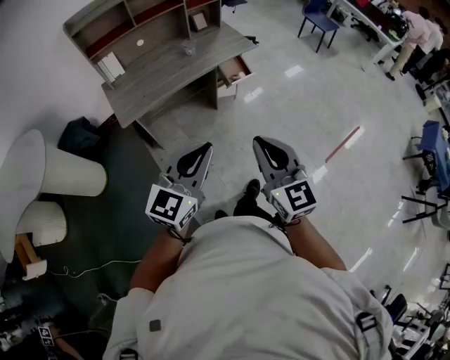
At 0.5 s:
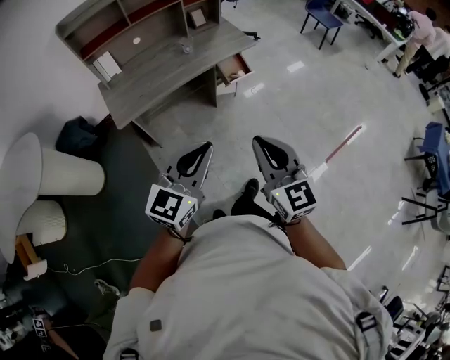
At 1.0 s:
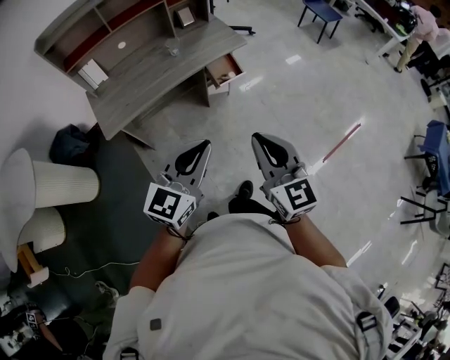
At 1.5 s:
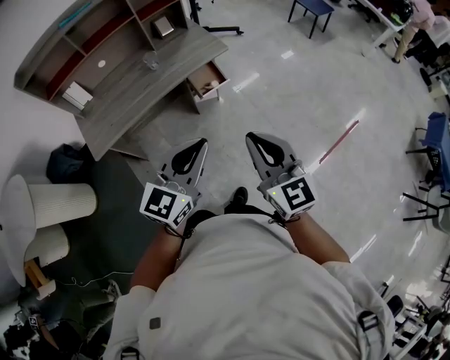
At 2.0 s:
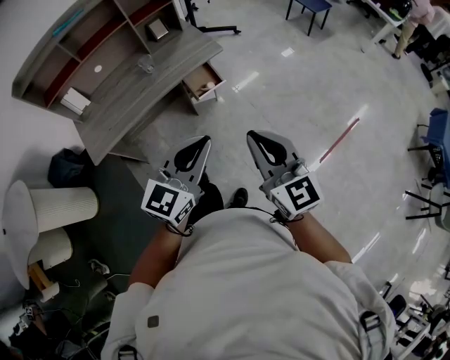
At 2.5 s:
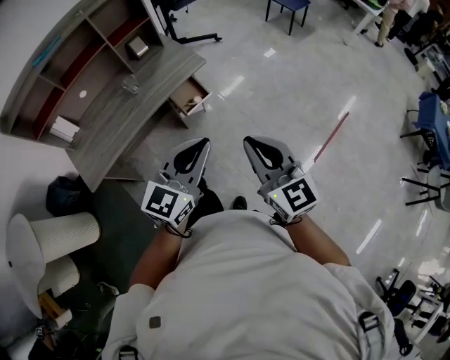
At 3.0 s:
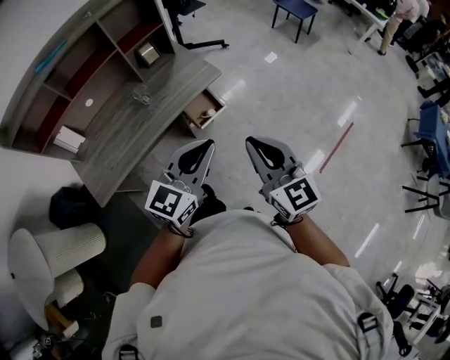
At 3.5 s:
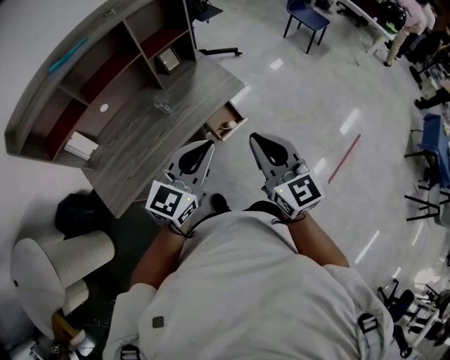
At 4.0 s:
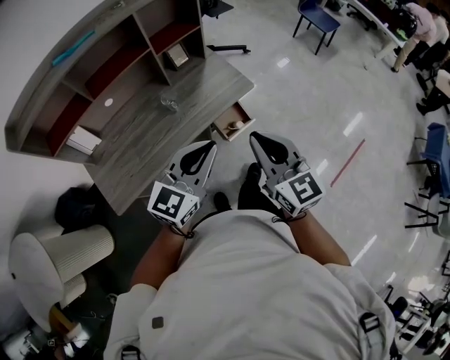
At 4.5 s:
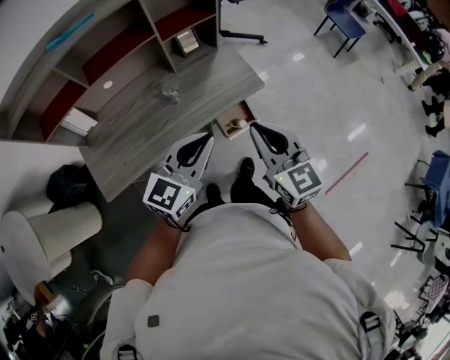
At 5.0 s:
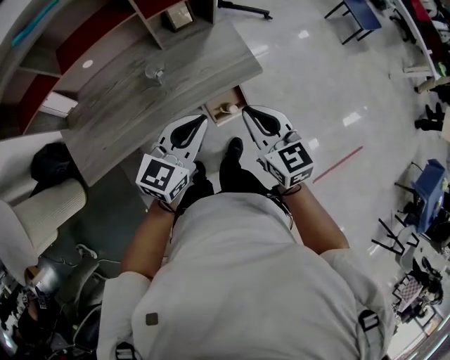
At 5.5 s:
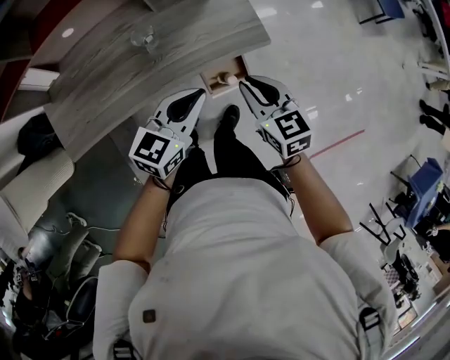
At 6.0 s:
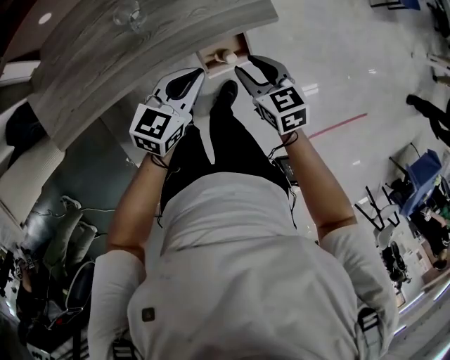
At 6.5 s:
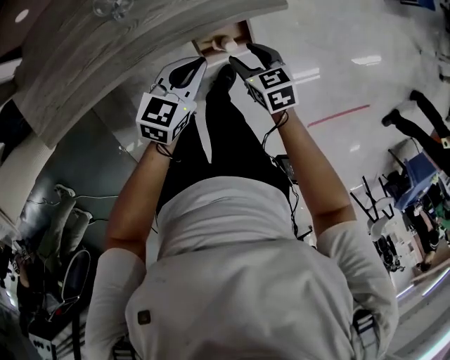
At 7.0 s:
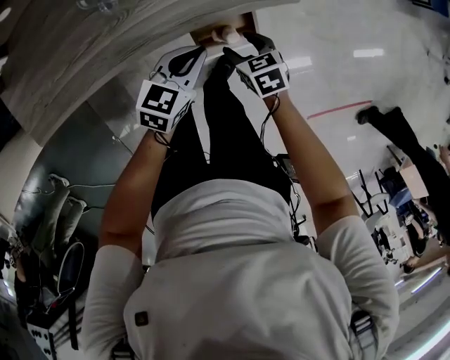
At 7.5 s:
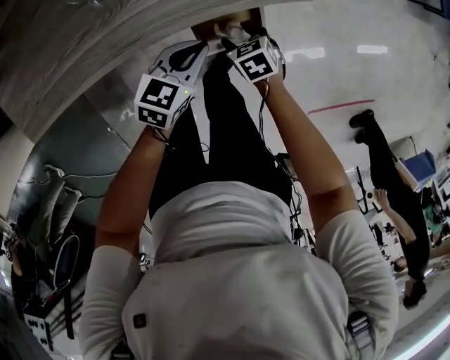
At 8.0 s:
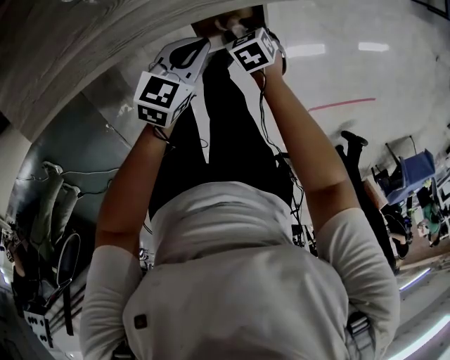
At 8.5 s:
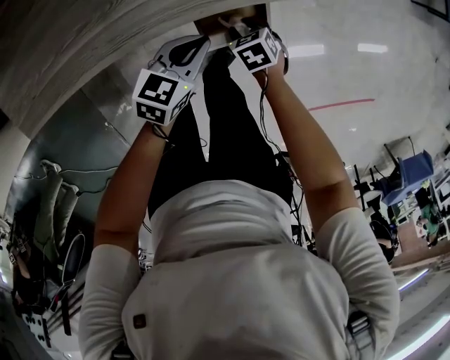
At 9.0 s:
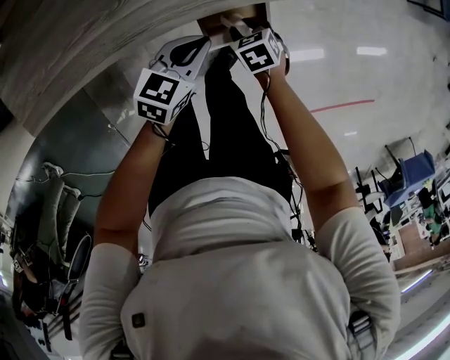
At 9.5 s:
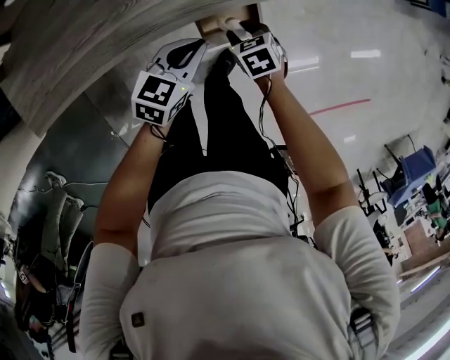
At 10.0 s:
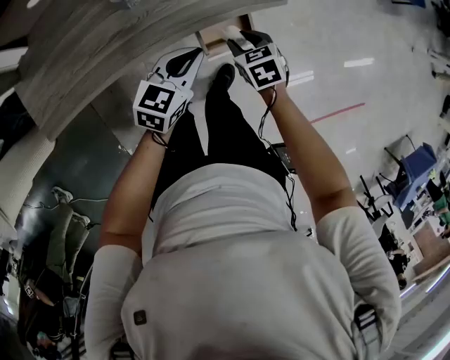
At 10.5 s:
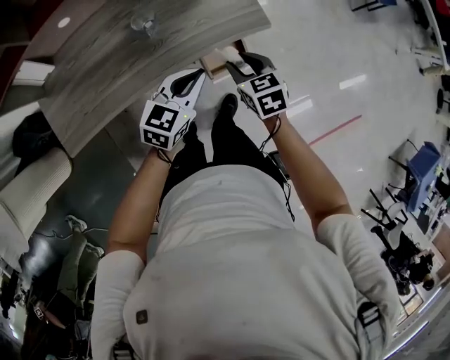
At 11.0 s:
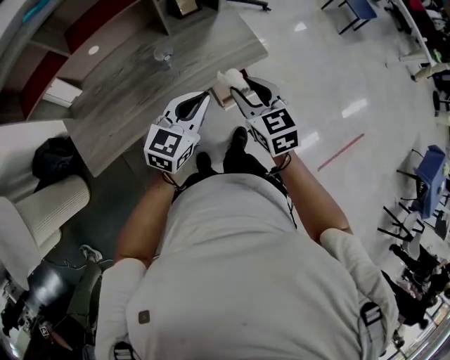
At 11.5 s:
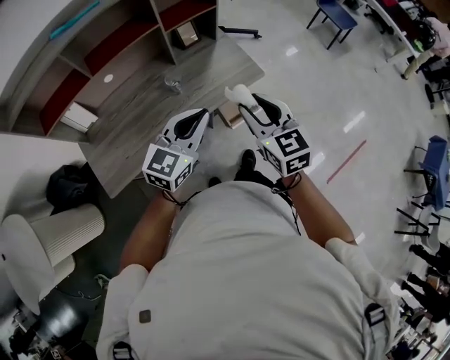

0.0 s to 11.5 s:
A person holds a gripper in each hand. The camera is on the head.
0.0 to 2.0 s: Both grippers travel together forward and to the right, some 30 cm.
2.0 to 4.0 s: Both grippers travel together forward and to the left, some 30 cm.
4.0 to 6.0 s: The two grippers go about 40 cm downward and forward. The left gripper swivels some 30 degrees, while the right gripper points its fingers roughly 40 degrees further downward, and opens.
6.0 to 7.5 s: Both grippers move downward, about 25 cm. The right gripper rotates roughly 30 degrees, and opens up.
7.5 to 9.5 s: The right gripper shifts roughly 10 cm upward, and closes. Meanwhile the left gripper shifts roughly 10 cm upward and to the left.
9.5 to 11.5 s: Both grippers move upward, about 40 cm. The left gripper changes its angle by approximately 30 degrees. Meanwhile the right gripper tips its fingers upward by some 40 degrees.

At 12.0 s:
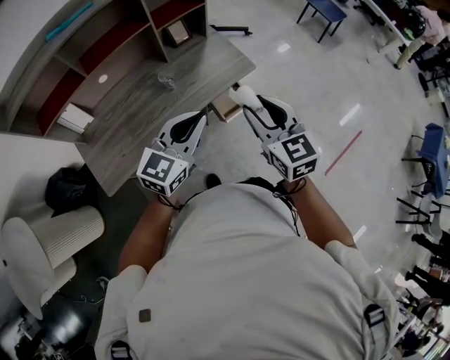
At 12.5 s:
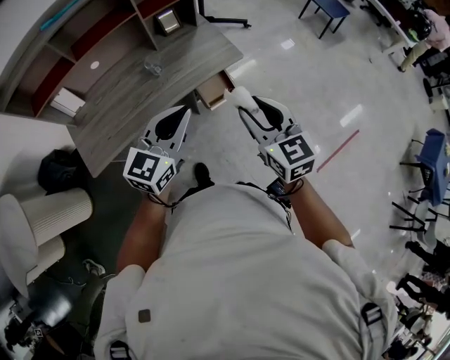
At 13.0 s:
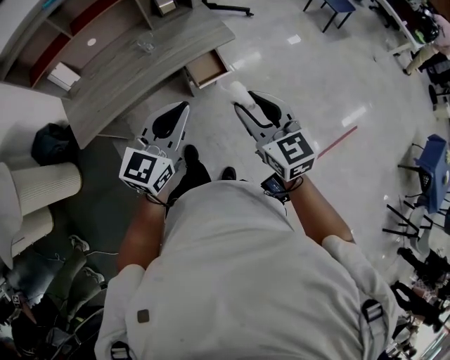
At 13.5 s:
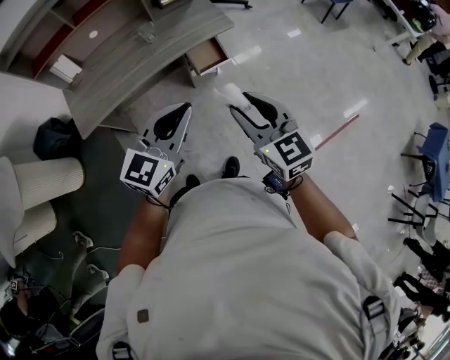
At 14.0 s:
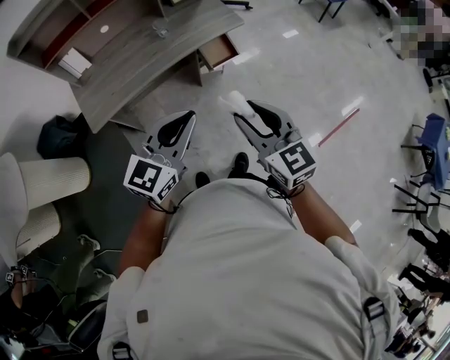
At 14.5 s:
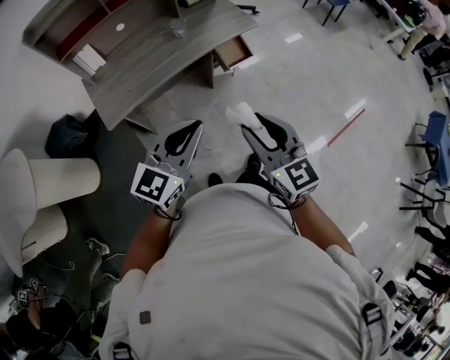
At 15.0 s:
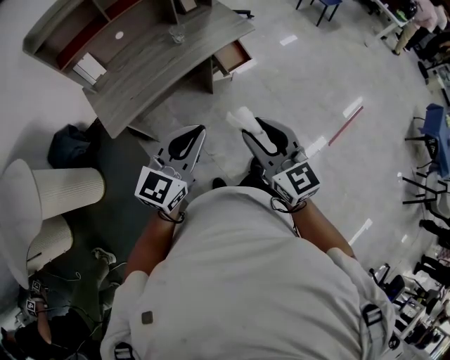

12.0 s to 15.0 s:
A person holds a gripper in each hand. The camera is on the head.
12.0 to 13.5 s: Both grippers move backward and to the right, approximately 25 cm.
13.5 to 15.0 s: The grippers both shift to the left and backward by some 20 cm.

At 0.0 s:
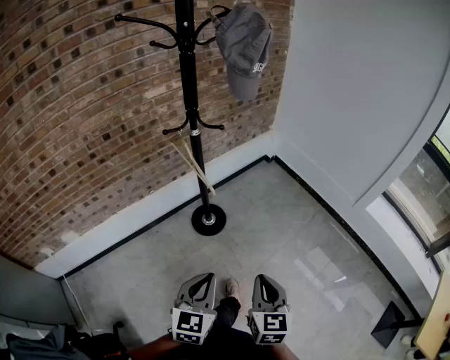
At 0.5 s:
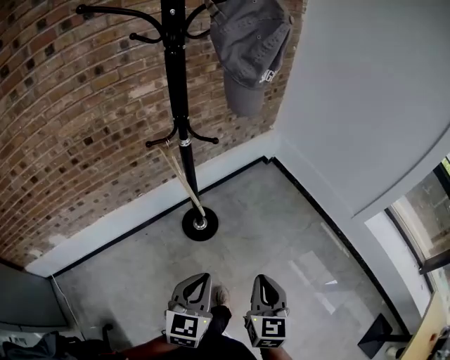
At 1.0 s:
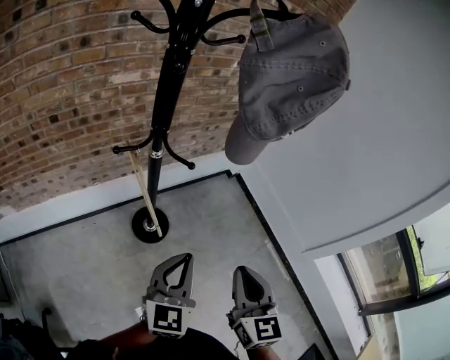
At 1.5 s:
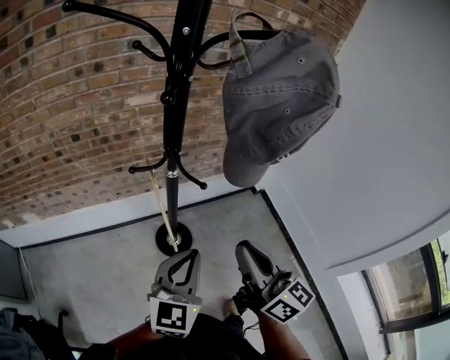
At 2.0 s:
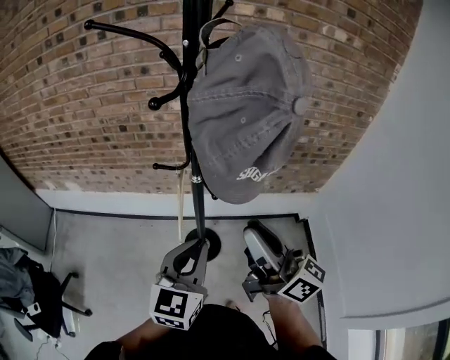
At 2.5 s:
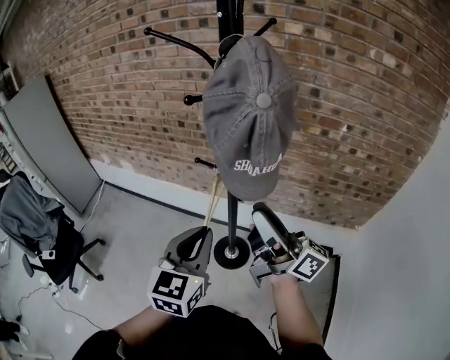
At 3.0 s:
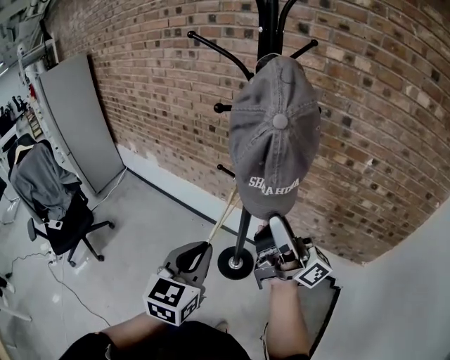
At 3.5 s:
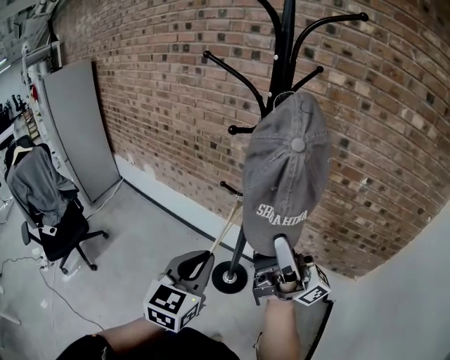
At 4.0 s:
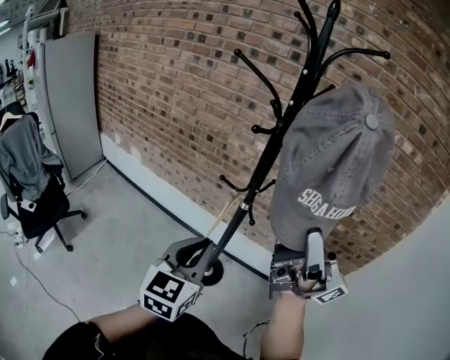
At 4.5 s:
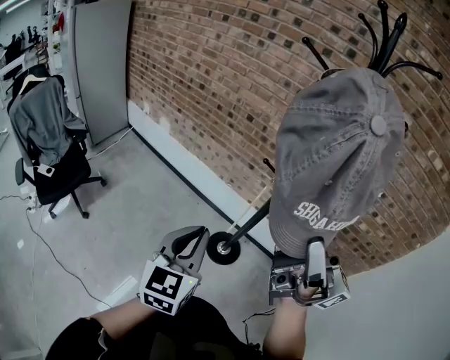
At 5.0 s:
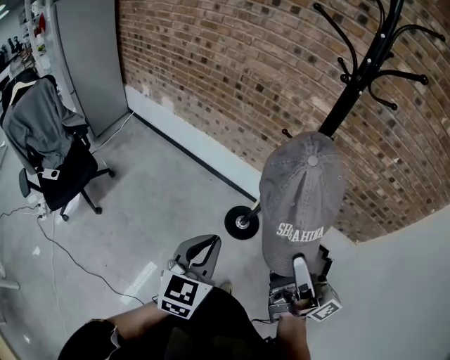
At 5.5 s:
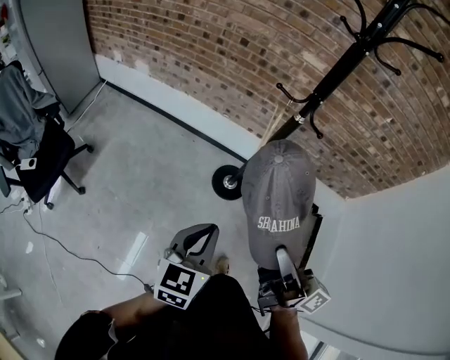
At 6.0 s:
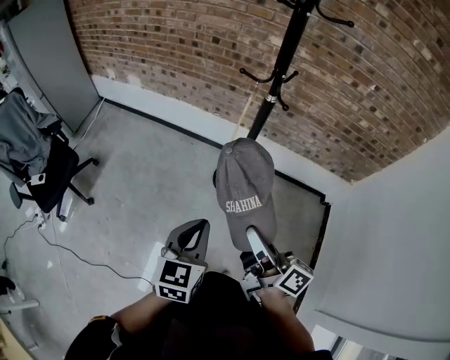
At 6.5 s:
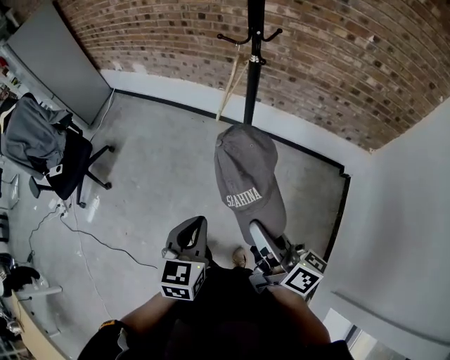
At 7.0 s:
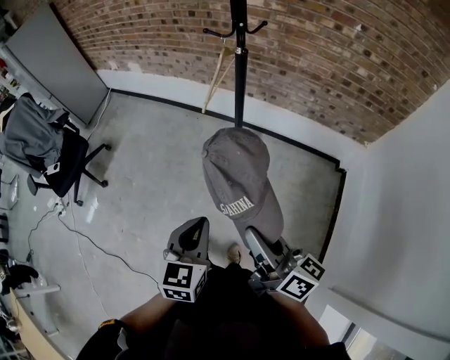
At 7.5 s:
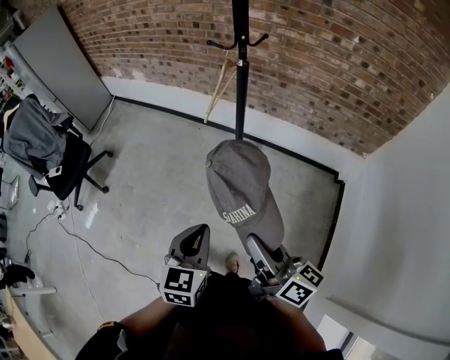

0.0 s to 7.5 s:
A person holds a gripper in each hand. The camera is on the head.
0.0 to 2.0 s: Both grippers are carried about 40 cm. The right gripper angles its fingers upward, by approximately 50 degrees. Meanwhile the left gripper rotates approximately 40 degrees.
2.0 to 4.0 s: The right gripper moves upward, some 20 cm, and swivels some 50 degrees. The left gripper travels upward by about 5 cm, and rotates roughly 20 degrees.
4.0 to 5.5 s: The right gripper is displaced downward by roughly 30 cm, and points its fingers approximately 30 degrees further downward, while the left gripper moves some 25 cm.
5.5 to 7.5 s: The right gripper shifts some 30 cm backward, to the right and downward, while the left gripper shifts about 30 cm backward and to the right.

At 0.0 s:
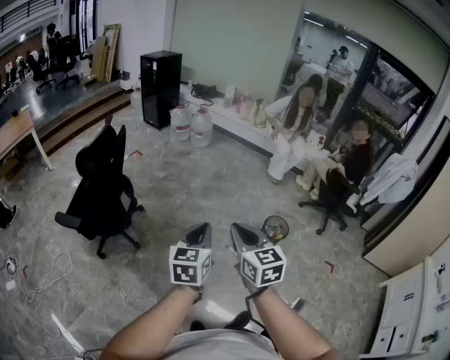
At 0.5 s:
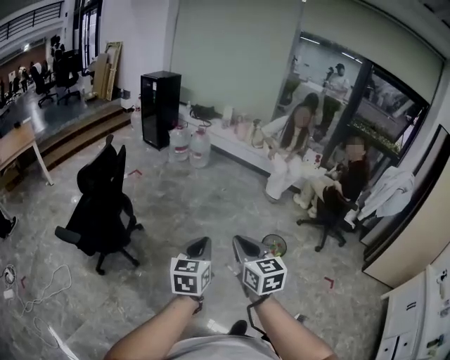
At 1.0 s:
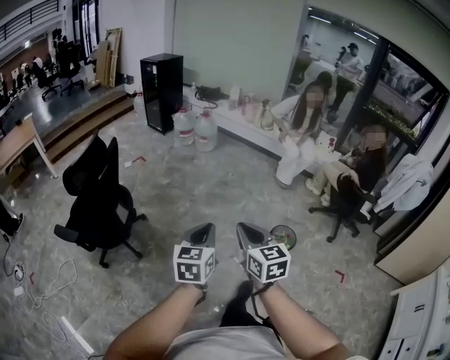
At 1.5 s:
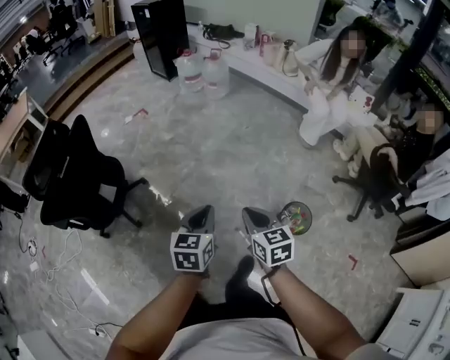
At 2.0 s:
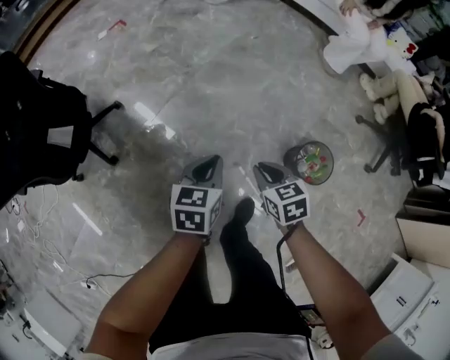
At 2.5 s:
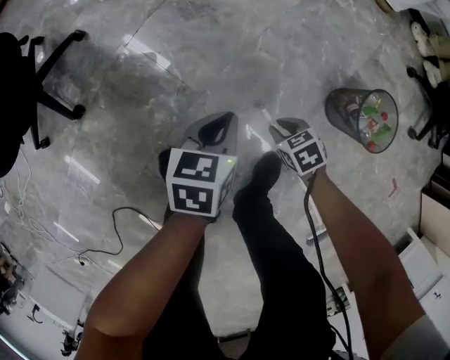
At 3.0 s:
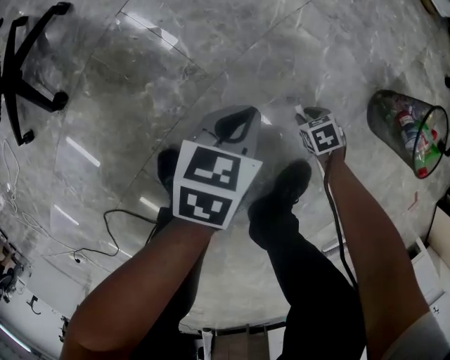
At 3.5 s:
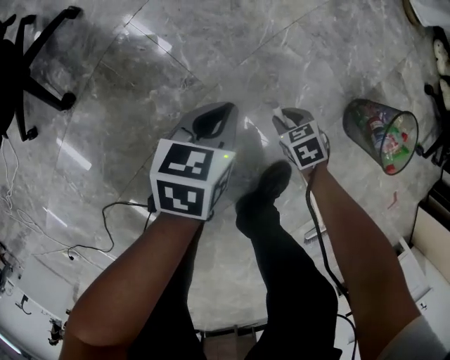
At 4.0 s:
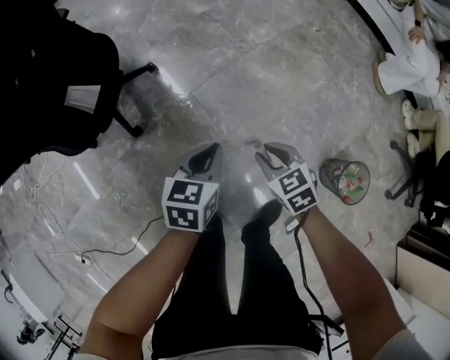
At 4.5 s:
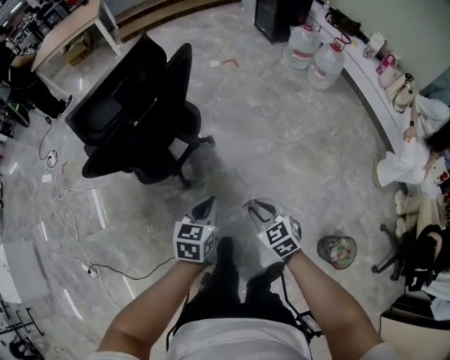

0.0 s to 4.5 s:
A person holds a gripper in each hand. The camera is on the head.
0.0 to 2.0 s: The two grippers travel together, forward and to the right, about 50 cm. Both grippers travel together downward, approximately 50 cm. The right gripper points its fingers about 30 degrees further downward; the left gripper swivels approximately 30 degrees.
2.0 to 4.5 s: The two grippers travel together, about 40 cm. The right gripper rotates around the line of its fingers by approximately 40 degrees, counterclockwise from behind, while the left gripper rotates about 30 degrees.
